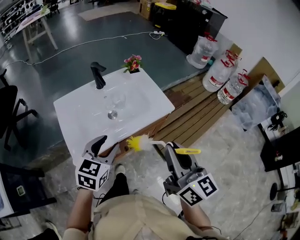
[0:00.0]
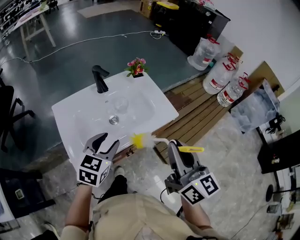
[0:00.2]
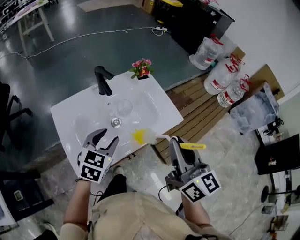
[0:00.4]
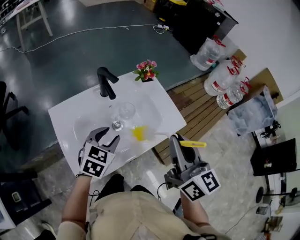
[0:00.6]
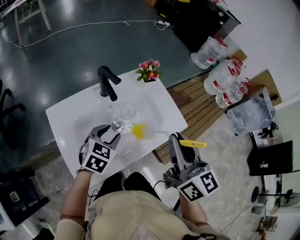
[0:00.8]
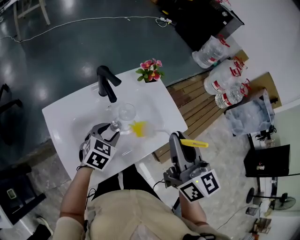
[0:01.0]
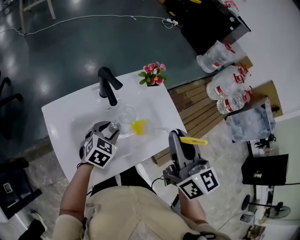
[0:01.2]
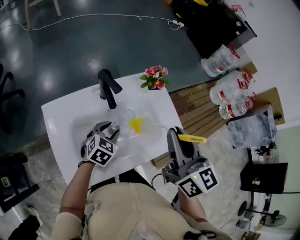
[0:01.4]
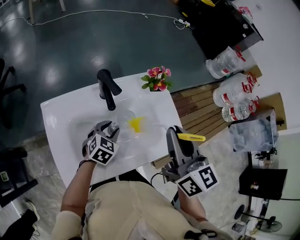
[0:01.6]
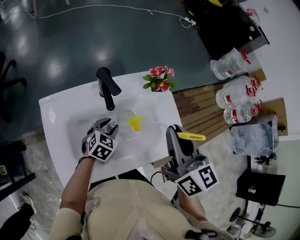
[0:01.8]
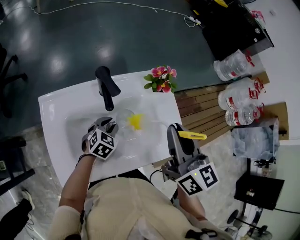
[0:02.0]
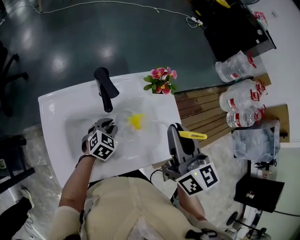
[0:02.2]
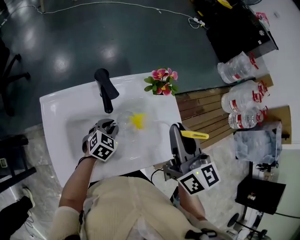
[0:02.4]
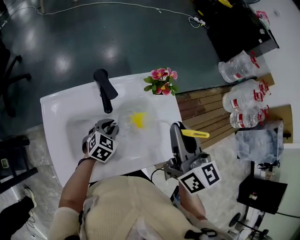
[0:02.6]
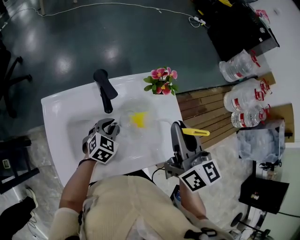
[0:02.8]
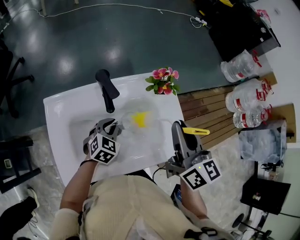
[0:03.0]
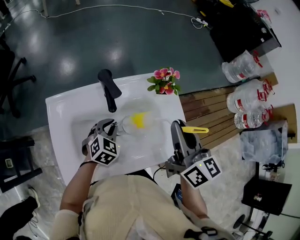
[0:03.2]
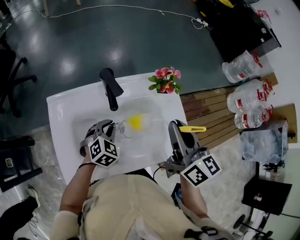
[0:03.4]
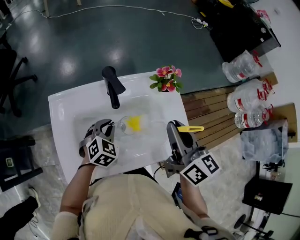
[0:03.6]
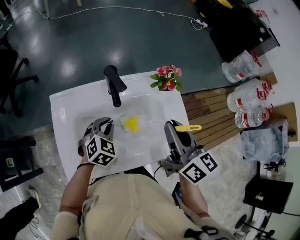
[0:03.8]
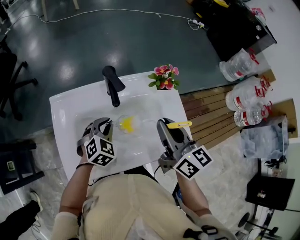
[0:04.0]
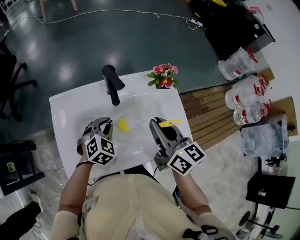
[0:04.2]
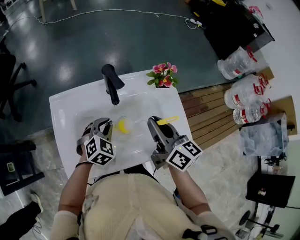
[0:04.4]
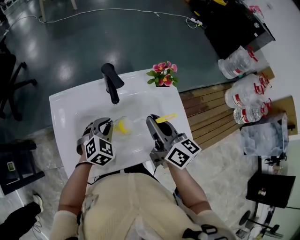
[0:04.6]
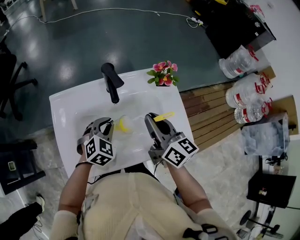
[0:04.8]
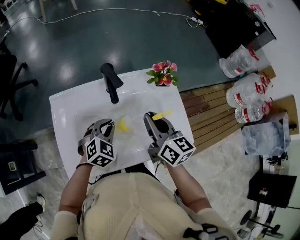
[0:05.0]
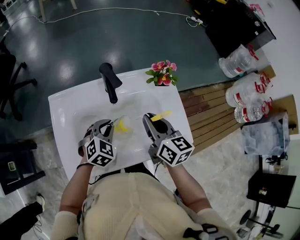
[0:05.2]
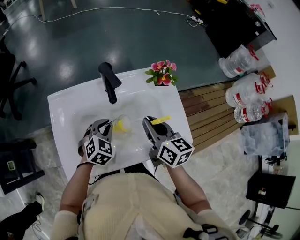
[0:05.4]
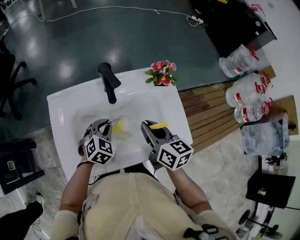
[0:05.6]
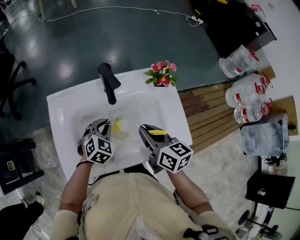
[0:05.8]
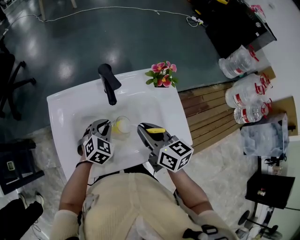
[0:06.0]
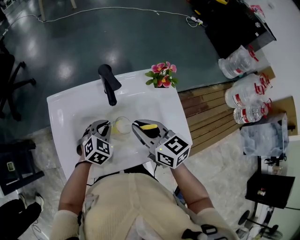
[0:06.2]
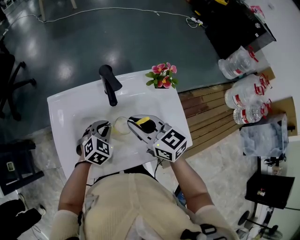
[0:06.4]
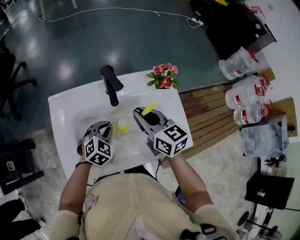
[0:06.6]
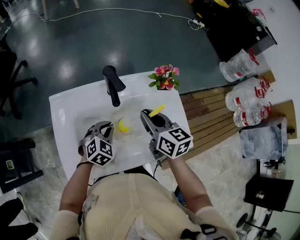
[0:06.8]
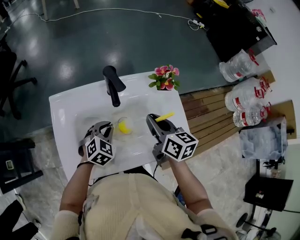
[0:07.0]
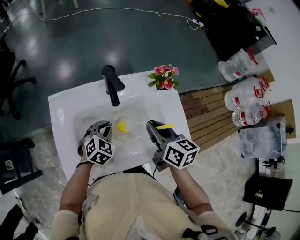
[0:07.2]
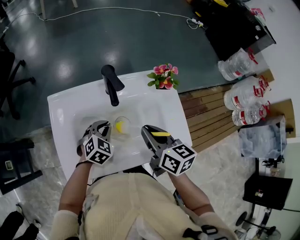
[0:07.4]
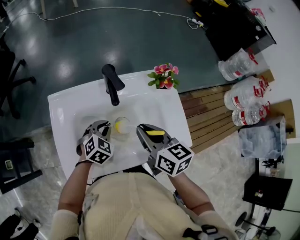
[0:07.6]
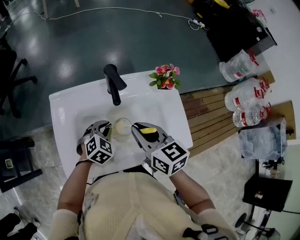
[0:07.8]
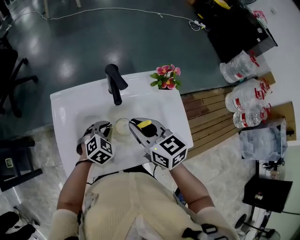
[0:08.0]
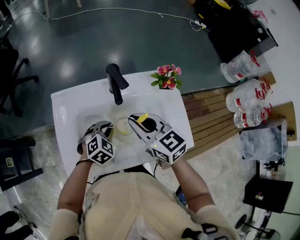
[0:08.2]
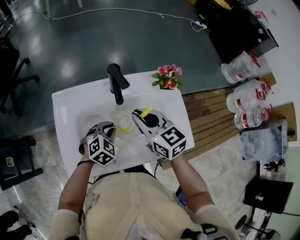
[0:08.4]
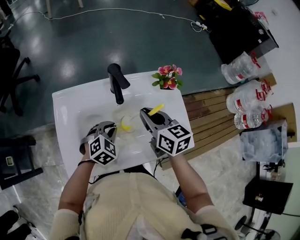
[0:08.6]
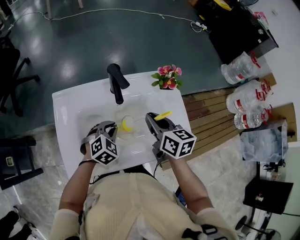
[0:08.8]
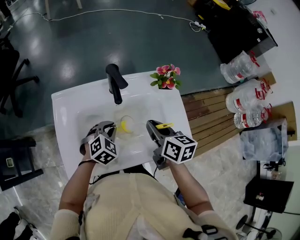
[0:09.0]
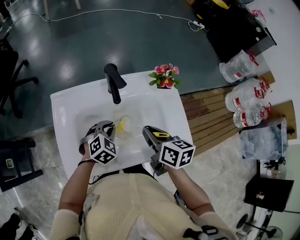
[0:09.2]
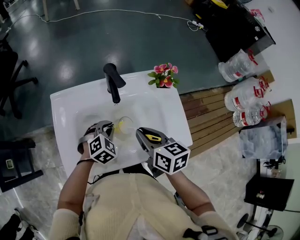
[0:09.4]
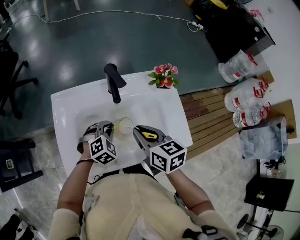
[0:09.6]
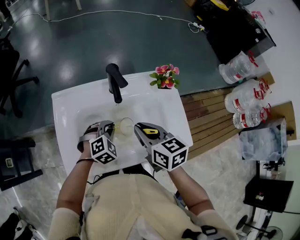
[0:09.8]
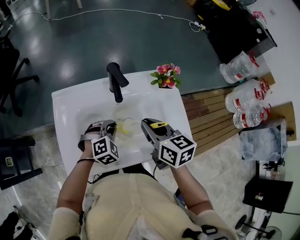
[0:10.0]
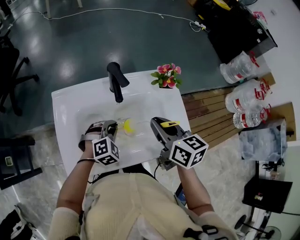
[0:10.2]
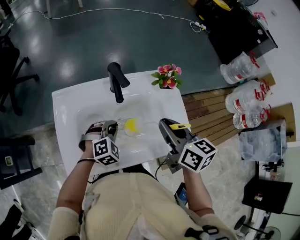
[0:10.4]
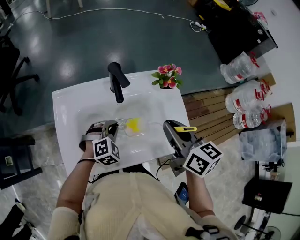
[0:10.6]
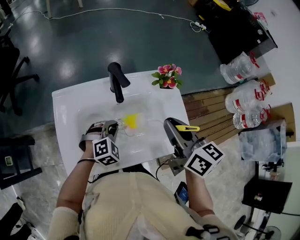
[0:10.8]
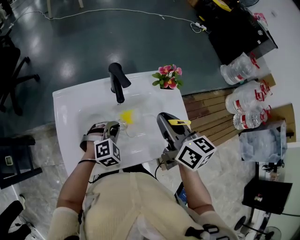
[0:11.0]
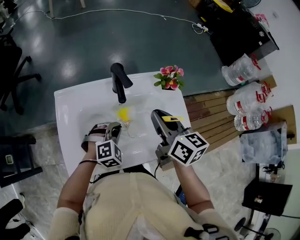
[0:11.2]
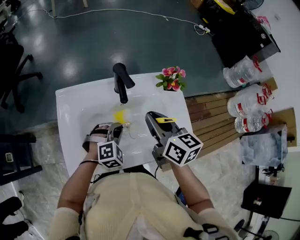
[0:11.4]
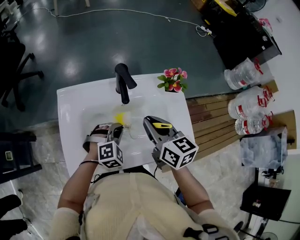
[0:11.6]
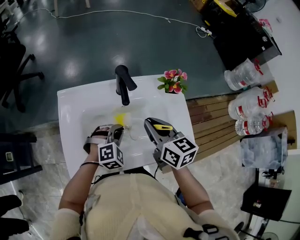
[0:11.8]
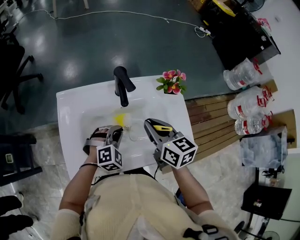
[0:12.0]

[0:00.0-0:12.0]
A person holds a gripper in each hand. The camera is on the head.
0:00.0 to 0:01.6: The right gripper goes some 30 cm forward, while the left gripper travels forward and downward by about 30 cm.
0:01.6 to 0:03.0: The right gripper is displaced forward by about 5 cm; the left gripper closes up.
0:03.0 to 0:04.4: The left gripper changes place by about 5 cm, while the right gripper goes roughly 10 cm to the left and downward.
0:04.4 to 0:06.0: The right gripper ends up about 5 cm from where it was.
0:06.0 to 0:07.6: The right gripper goes left and right, about 10 cm each way, reversing 2 times.
0:07.6 to 0:09.0: The right gripper ends up approximately 5 cm from where it was.
0:09.0 to 0:10.4: The right gripper heads upward, covering about 10 cm.
0:10.4 to 0:12.0: The right gripper moves to the left, some 5 cm.

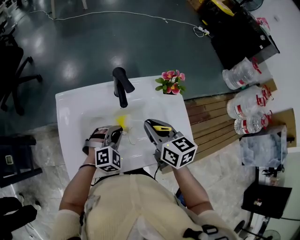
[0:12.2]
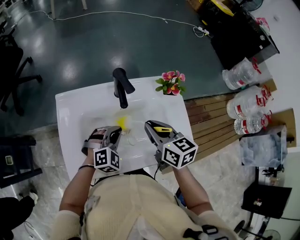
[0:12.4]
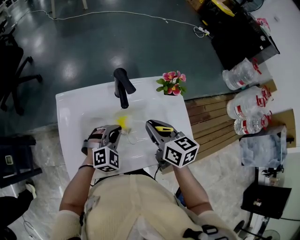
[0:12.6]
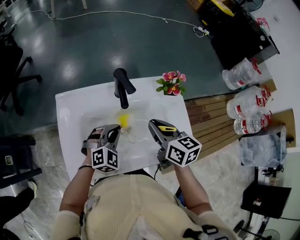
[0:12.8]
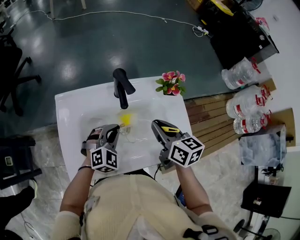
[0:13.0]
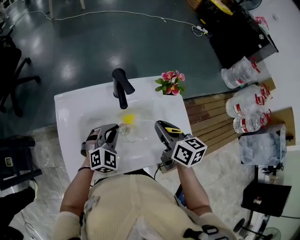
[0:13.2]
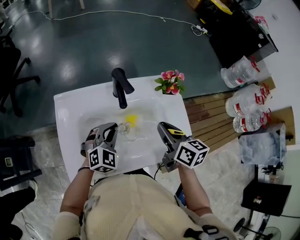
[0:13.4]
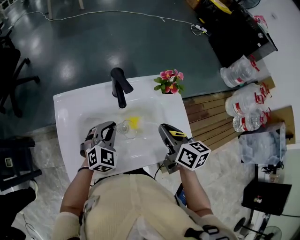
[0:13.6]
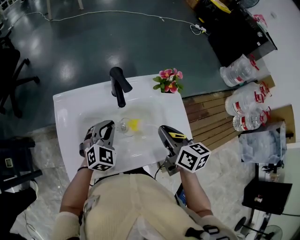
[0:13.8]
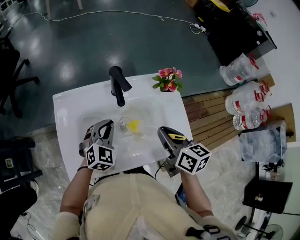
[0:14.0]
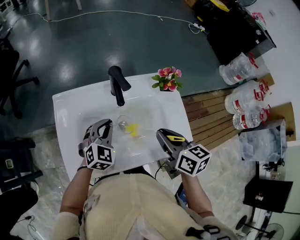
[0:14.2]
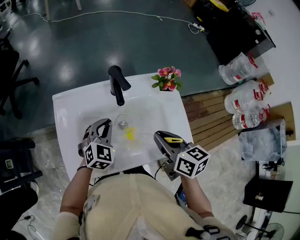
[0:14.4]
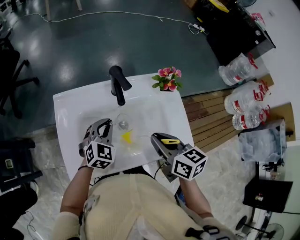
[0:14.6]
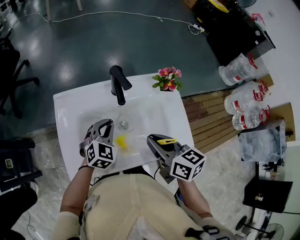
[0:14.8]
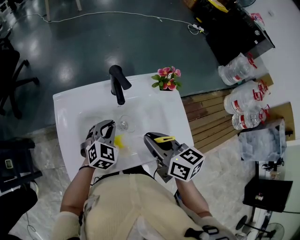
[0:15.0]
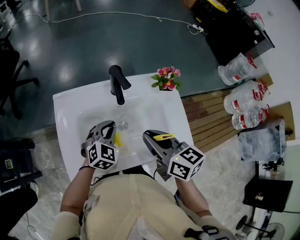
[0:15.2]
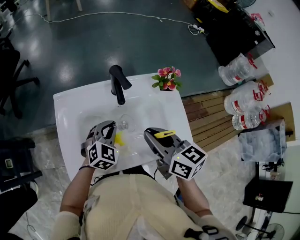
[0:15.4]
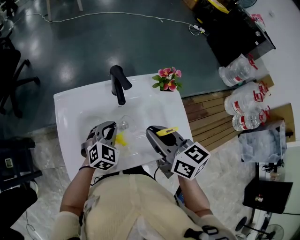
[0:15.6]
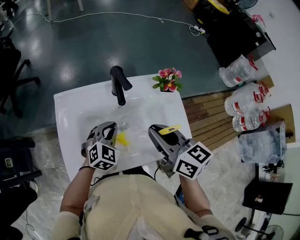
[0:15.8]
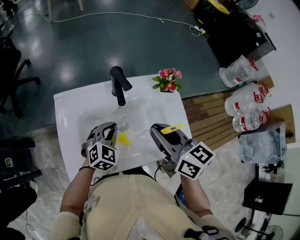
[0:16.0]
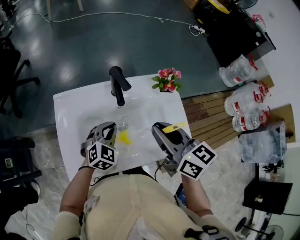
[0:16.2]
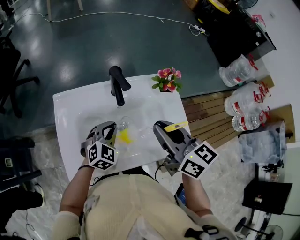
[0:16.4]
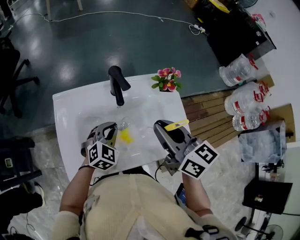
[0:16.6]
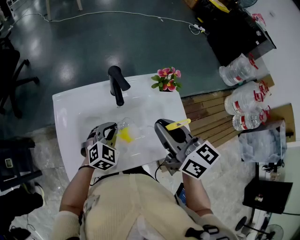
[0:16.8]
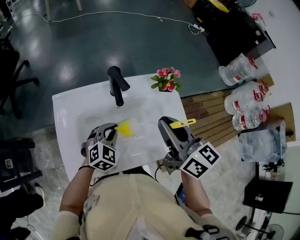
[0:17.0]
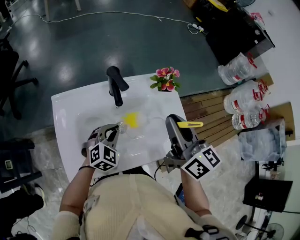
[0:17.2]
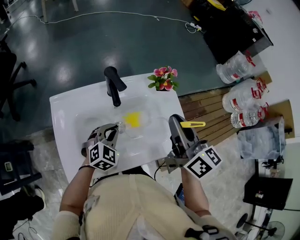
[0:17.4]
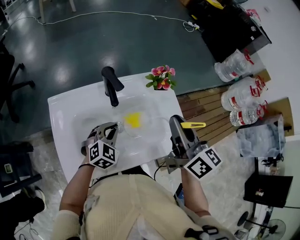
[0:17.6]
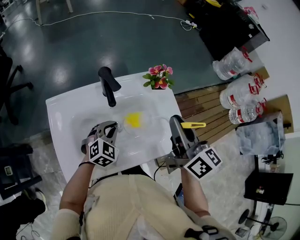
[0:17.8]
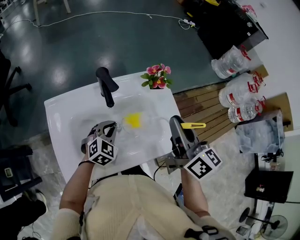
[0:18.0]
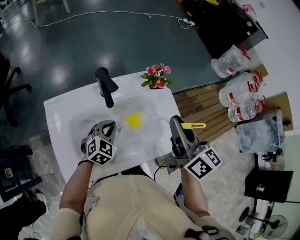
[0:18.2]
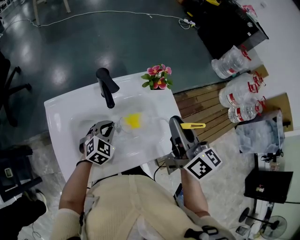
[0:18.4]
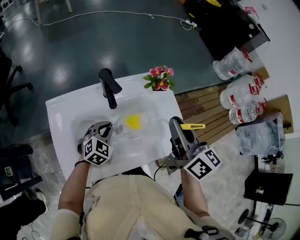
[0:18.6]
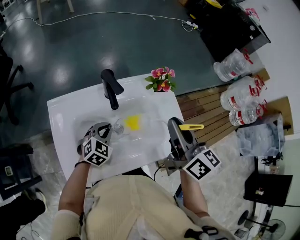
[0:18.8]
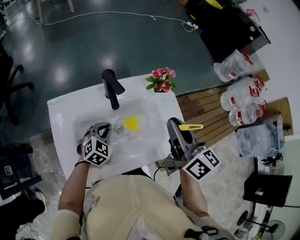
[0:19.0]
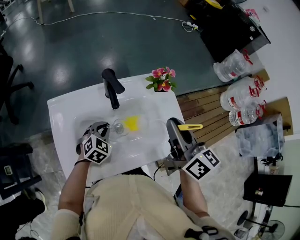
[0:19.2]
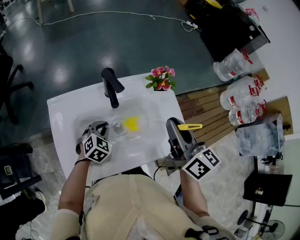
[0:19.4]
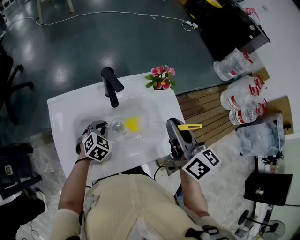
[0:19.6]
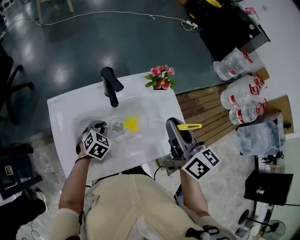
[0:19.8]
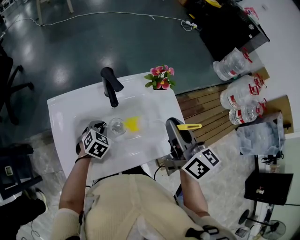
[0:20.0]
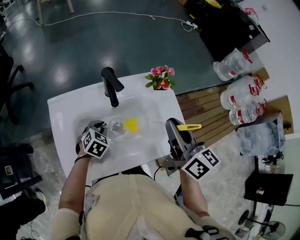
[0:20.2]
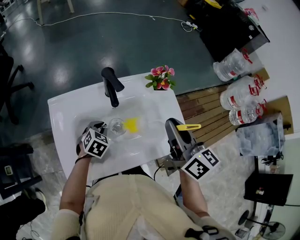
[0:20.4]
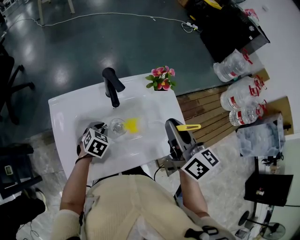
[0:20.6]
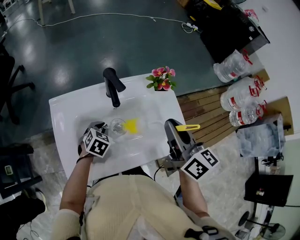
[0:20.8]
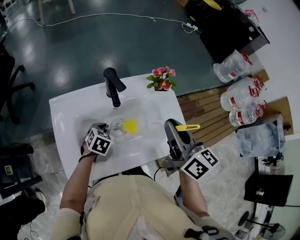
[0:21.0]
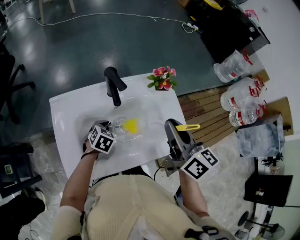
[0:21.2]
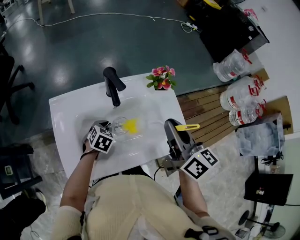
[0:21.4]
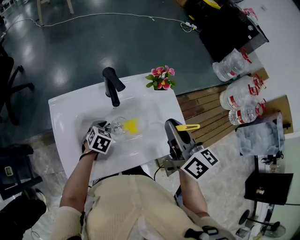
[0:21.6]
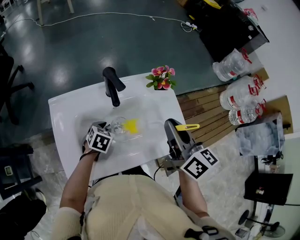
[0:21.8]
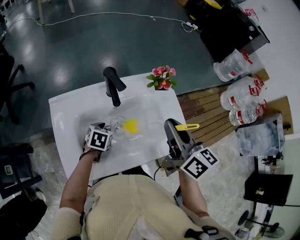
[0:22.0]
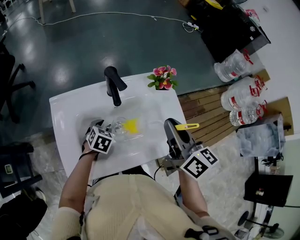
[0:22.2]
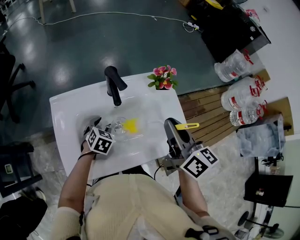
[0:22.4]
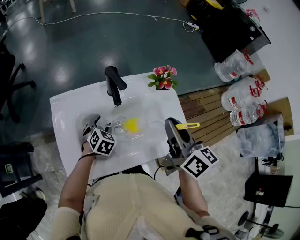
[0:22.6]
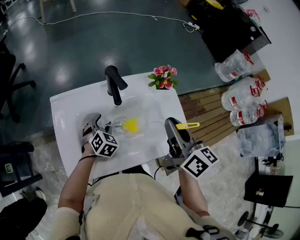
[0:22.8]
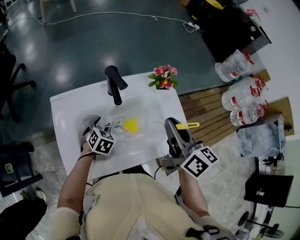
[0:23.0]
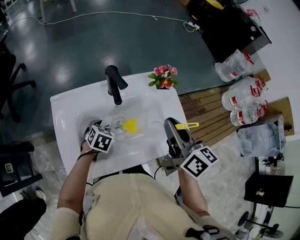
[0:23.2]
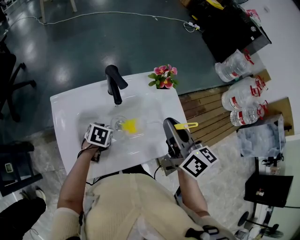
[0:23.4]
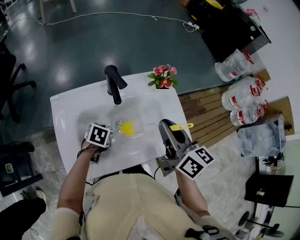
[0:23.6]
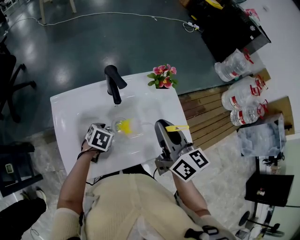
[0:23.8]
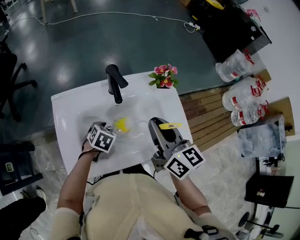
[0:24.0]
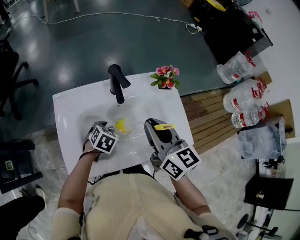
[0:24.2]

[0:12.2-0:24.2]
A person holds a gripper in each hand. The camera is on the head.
0:12.2 to 0:13.8: The right gripper shifts about 5 cm to the right. The left gripper moves about 5 cm, and changes its angle by some 20 degrees.
0:13.8 to 0:15.2: The right gripper heads to the left, covering roughly 10 cm.
0:15.2 to 0:16.6: The right gripper is displaced upward by some 5 cm.
0:16.6 to 0:18.2: The right gripper travels to the right by roughly 10 cm, and changes its angle by some 20 degrees.
0:18.2 to 0:19.8: The left gripper travels to the left by some 5 cm.
0:19.8 to 0:21.2: The grippers move only a little.
0:21.2 to 0:22.6: The left gripper opens.
0:22.6 to 0:24.2: The left gripper closes its fingers; the right gripper moves to the left, roughly 5 cm.
